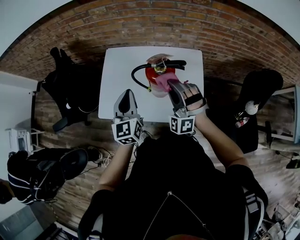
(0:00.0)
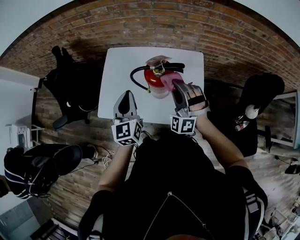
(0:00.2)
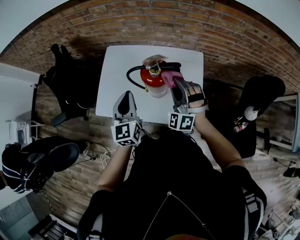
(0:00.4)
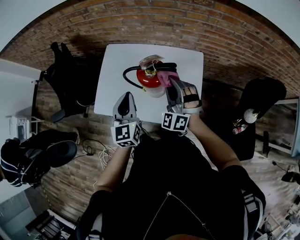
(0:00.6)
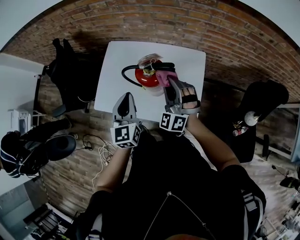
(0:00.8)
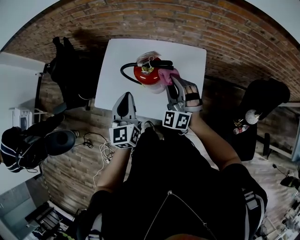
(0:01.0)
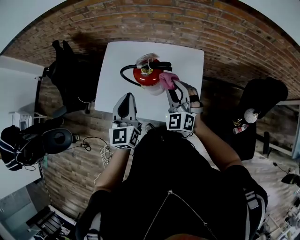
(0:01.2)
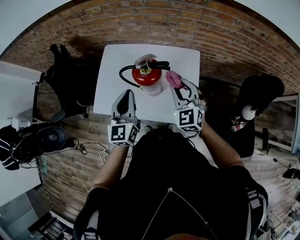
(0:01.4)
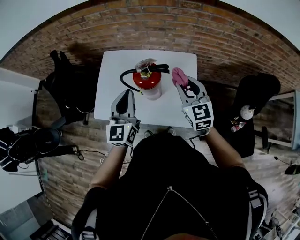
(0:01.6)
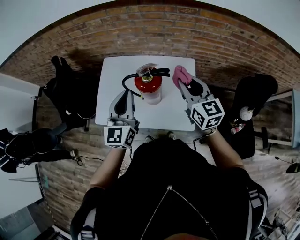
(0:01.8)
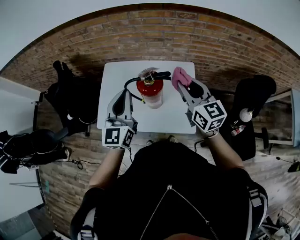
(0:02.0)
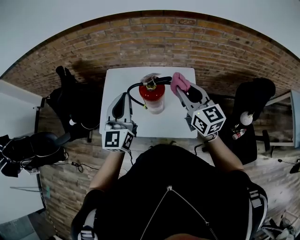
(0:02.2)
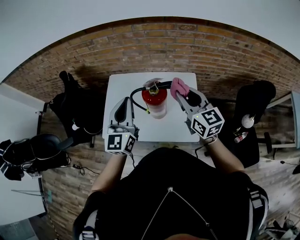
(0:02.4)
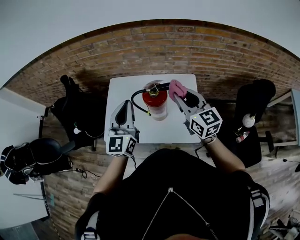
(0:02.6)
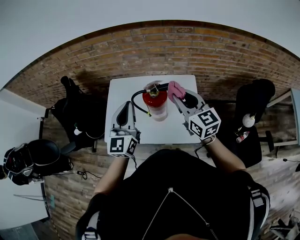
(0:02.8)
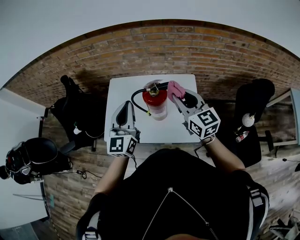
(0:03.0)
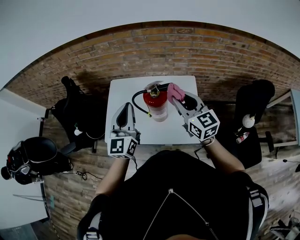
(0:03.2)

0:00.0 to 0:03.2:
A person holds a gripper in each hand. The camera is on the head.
0:00.0 to 0:01.6: The left gripper goes about 10 cm to the right and upward. Meanwhile the right gripper moves to the right, about 10 cm, and rolls clockwise, seen from behind, by some 70 degrees.
0:01.6 to 0:03.2: The left gripper is displaced upward by some 10 cm. Meanwhile the right gripper goes about 10 cm upward and to the left.

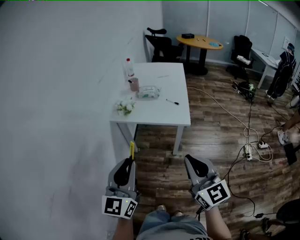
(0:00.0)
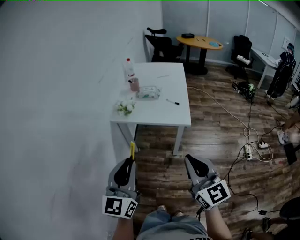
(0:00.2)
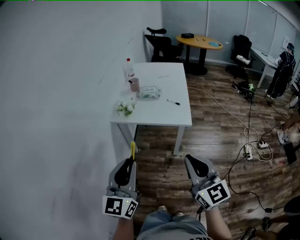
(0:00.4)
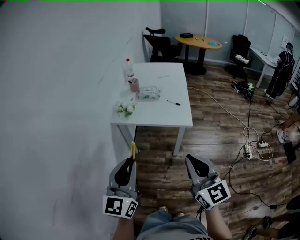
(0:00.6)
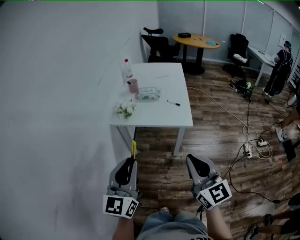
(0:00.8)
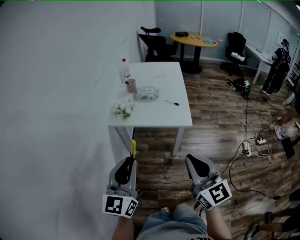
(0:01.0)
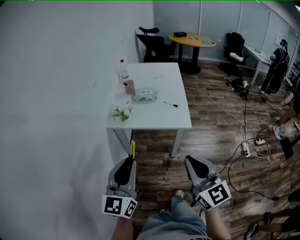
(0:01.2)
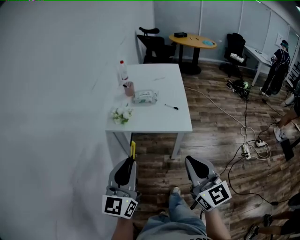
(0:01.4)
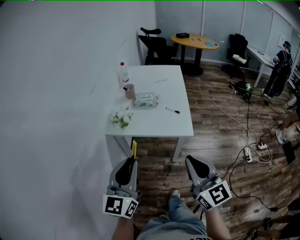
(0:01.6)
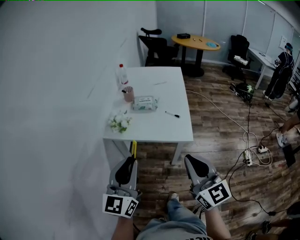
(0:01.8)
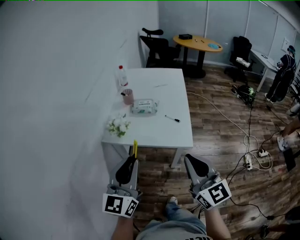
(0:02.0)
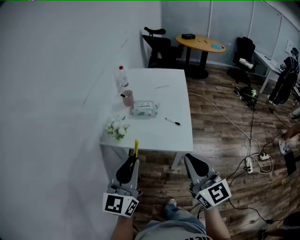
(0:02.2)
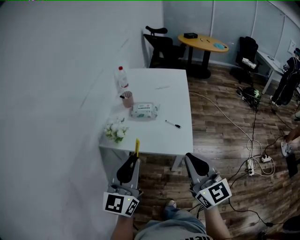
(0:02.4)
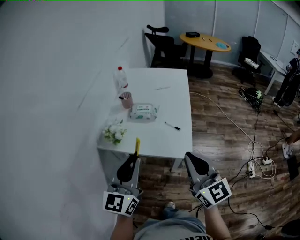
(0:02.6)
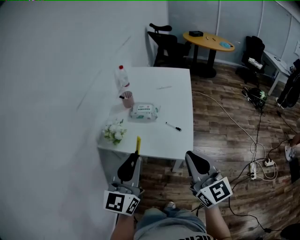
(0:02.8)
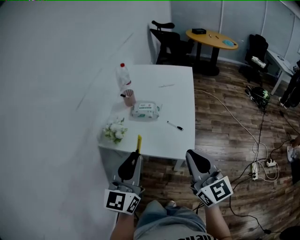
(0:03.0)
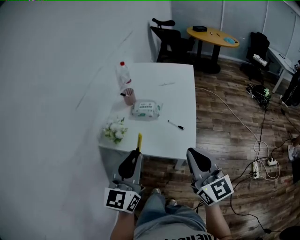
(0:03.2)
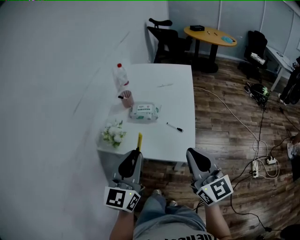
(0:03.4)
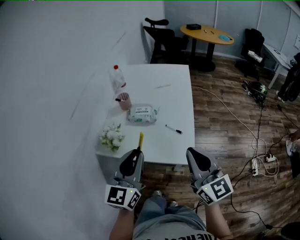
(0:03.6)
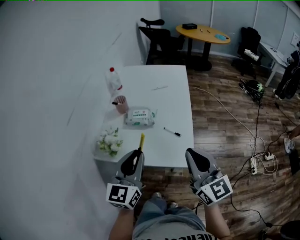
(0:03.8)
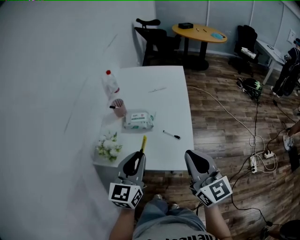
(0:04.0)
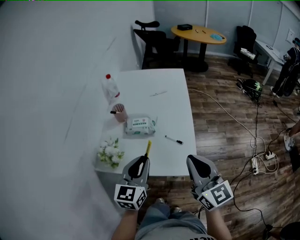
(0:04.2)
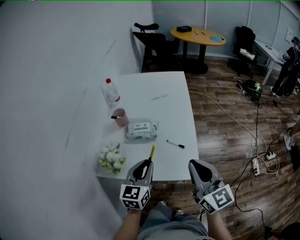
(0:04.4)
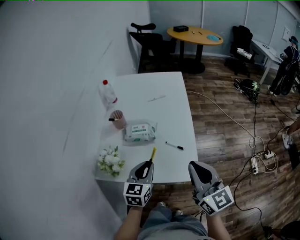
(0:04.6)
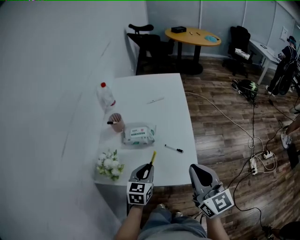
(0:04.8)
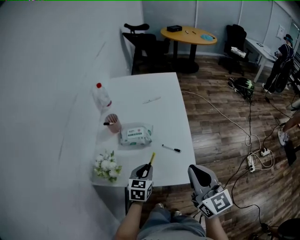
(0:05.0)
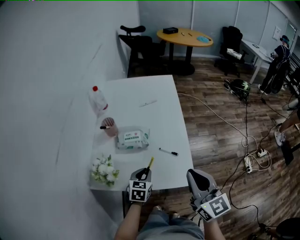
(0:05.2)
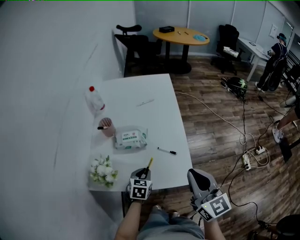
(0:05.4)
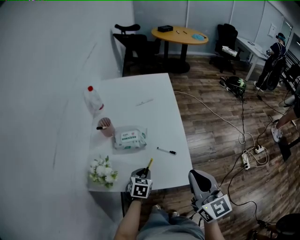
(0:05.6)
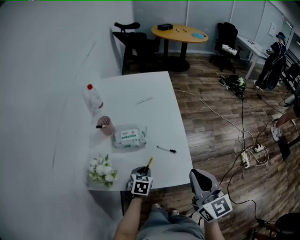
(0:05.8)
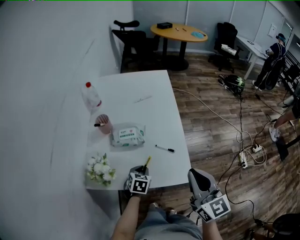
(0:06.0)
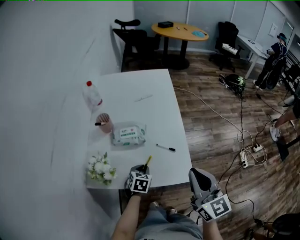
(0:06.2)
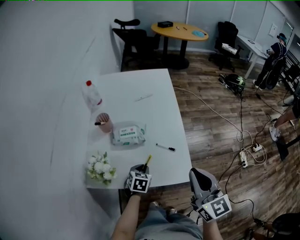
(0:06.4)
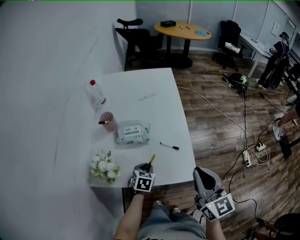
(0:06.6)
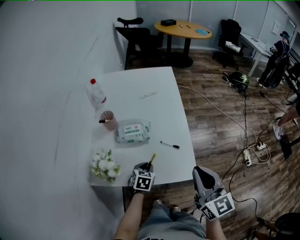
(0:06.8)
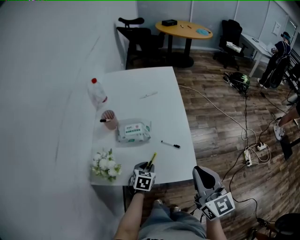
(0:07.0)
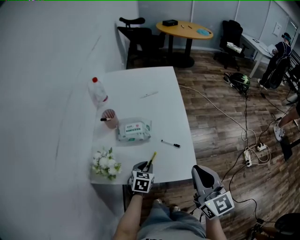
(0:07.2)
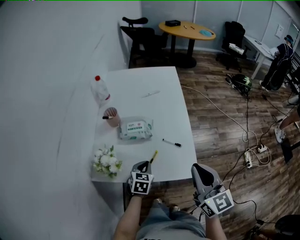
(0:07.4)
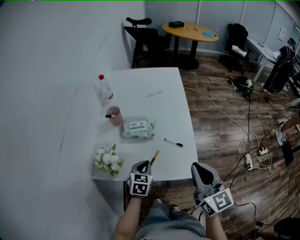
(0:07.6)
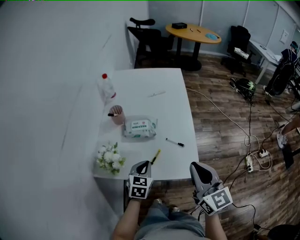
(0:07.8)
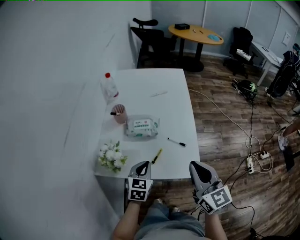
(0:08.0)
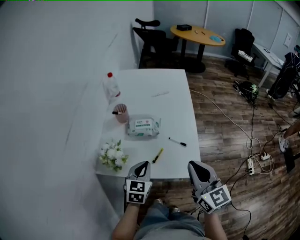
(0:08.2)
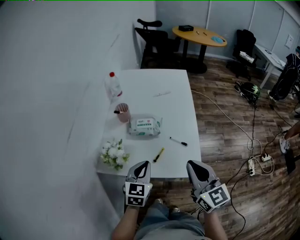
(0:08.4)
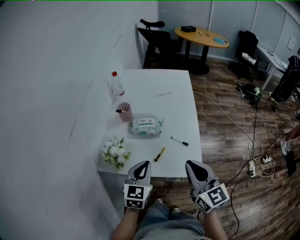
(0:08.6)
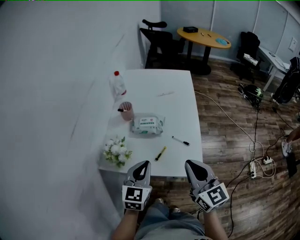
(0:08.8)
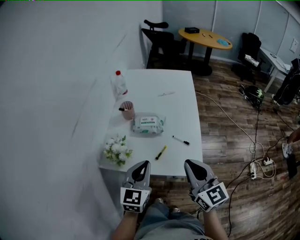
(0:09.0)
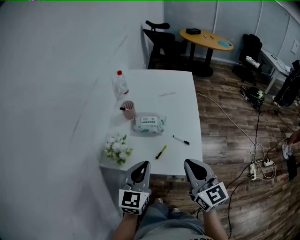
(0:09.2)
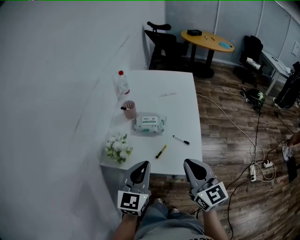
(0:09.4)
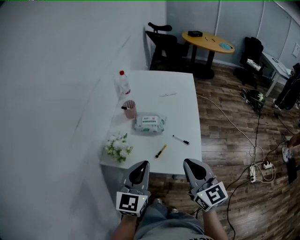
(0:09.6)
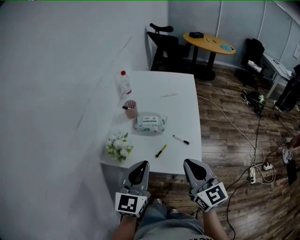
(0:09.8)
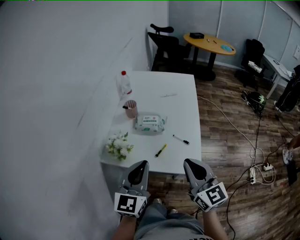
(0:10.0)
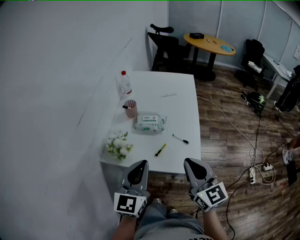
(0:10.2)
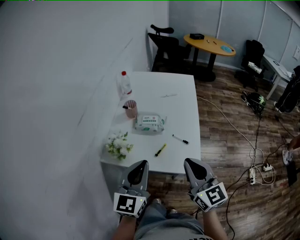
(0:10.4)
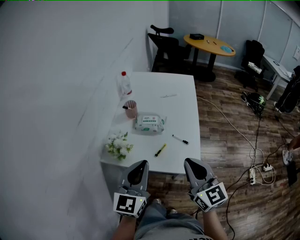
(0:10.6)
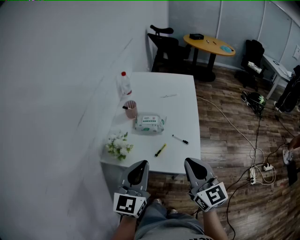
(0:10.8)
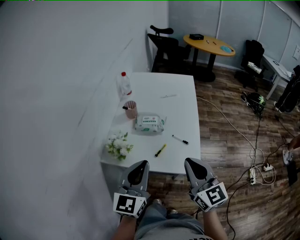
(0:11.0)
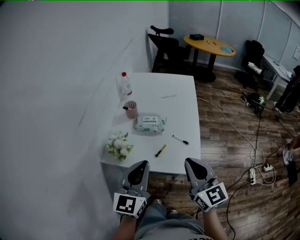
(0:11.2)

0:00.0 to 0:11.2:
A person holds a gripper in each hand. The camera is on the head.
0:00.0 to 0:01.6: The two grippers go some 10 cm forward.
0:01.6 to 0:03.2: The grippers both shift forward and to the right by approximately 20 cm.
0:03.2 to 0:04.8: The right gripper shifts about 10 cm forward; the left gripper travels downward and forward by roughly 25 cm, and tilts its fingers about 30 degrees downward.
0:04.8 to 0:06.4: The left gripper heads downward, covering roughly 10 cm, and changes its angle by roughly 20 degrees.
0:06.4 to 0:08.0: The left gripper moves upward, some 10 cm.
0:08.0 to 0:09.6: The left gripper goes approximately 20 cm upward and backward, and changes its angle by some 30 degrees.
0:09.6 to 0:11.2: The grippers stay close to where they were, moving slightly.

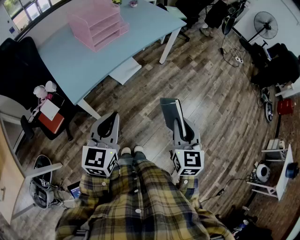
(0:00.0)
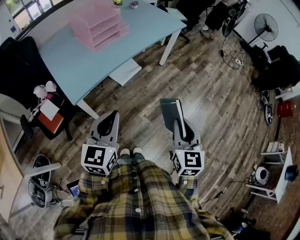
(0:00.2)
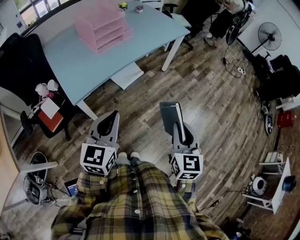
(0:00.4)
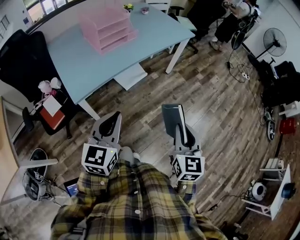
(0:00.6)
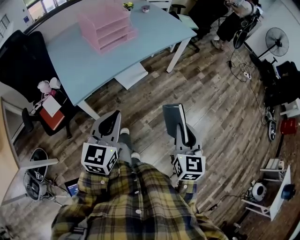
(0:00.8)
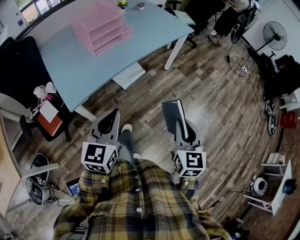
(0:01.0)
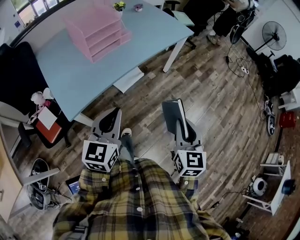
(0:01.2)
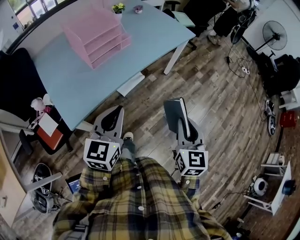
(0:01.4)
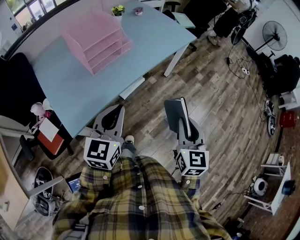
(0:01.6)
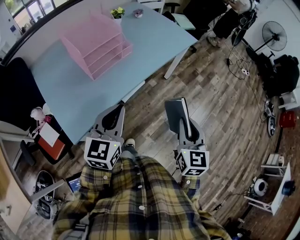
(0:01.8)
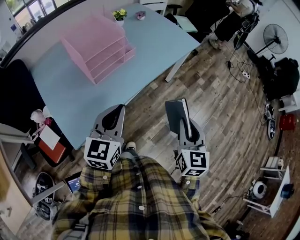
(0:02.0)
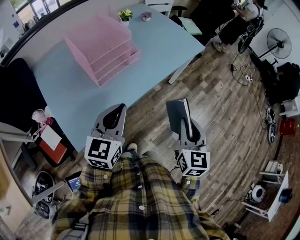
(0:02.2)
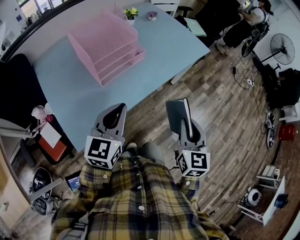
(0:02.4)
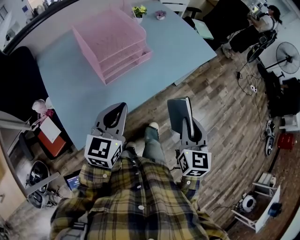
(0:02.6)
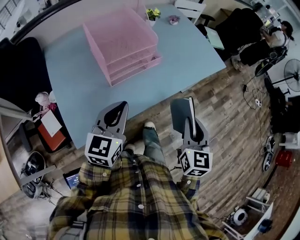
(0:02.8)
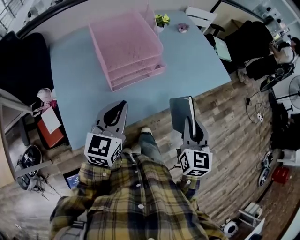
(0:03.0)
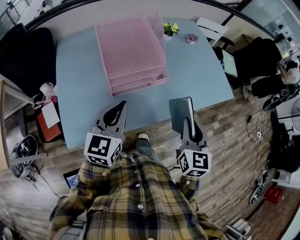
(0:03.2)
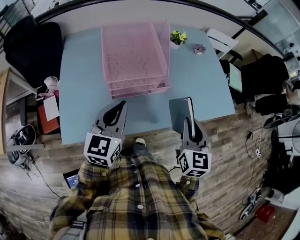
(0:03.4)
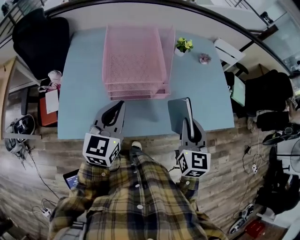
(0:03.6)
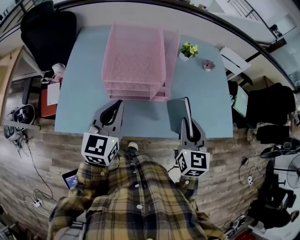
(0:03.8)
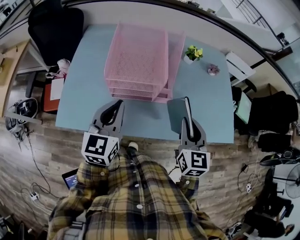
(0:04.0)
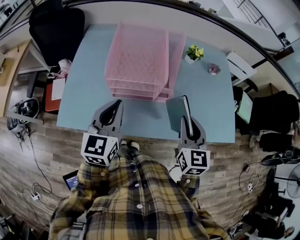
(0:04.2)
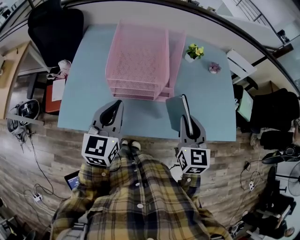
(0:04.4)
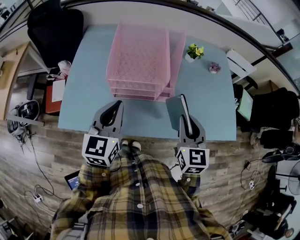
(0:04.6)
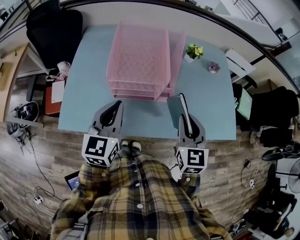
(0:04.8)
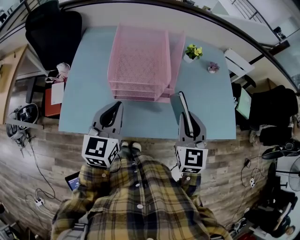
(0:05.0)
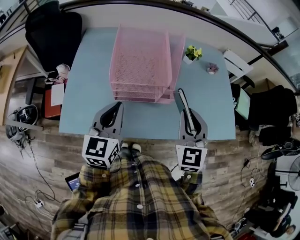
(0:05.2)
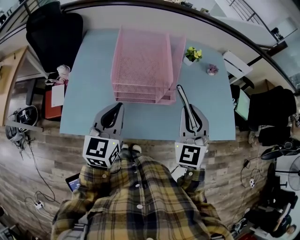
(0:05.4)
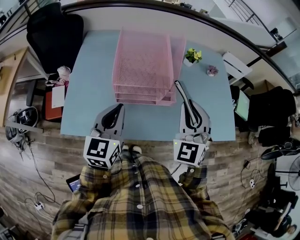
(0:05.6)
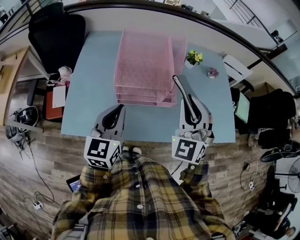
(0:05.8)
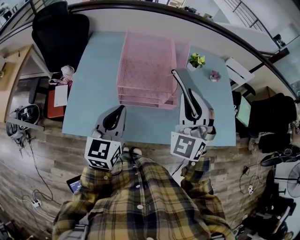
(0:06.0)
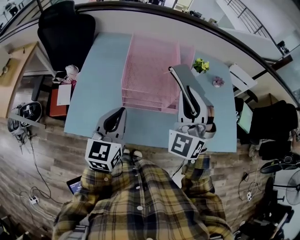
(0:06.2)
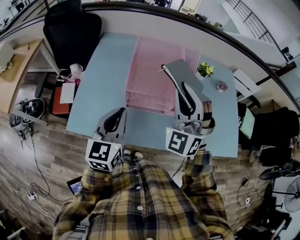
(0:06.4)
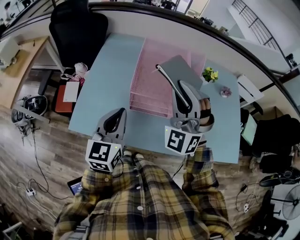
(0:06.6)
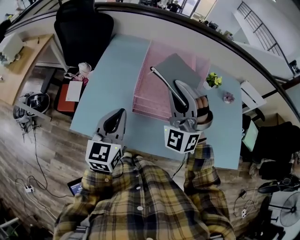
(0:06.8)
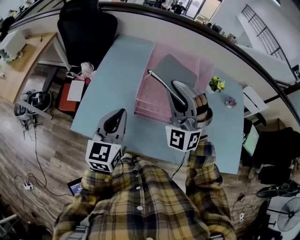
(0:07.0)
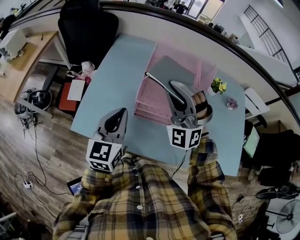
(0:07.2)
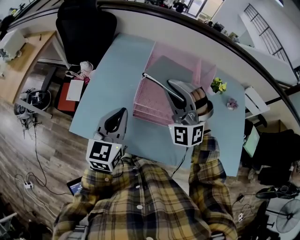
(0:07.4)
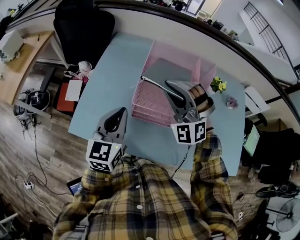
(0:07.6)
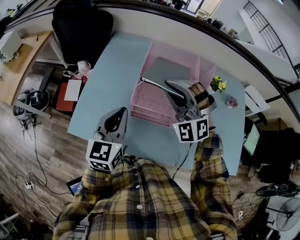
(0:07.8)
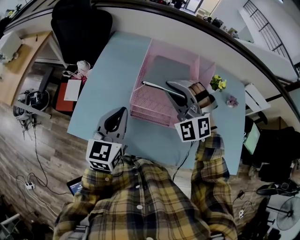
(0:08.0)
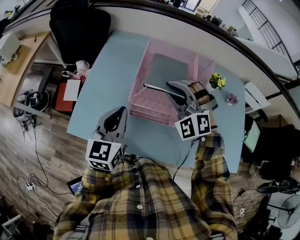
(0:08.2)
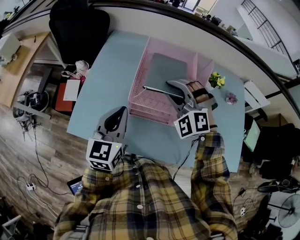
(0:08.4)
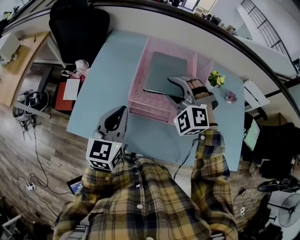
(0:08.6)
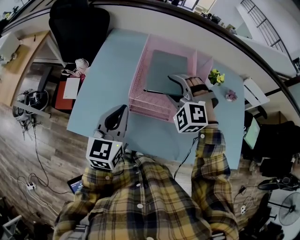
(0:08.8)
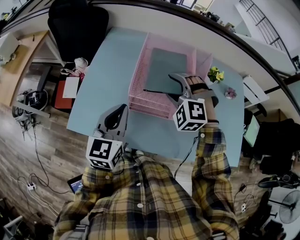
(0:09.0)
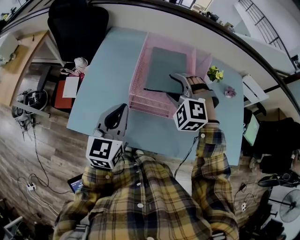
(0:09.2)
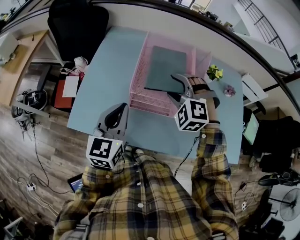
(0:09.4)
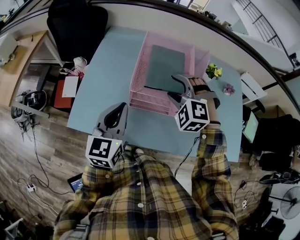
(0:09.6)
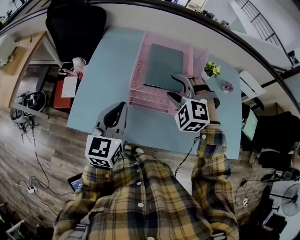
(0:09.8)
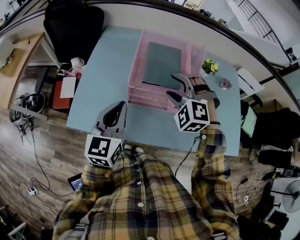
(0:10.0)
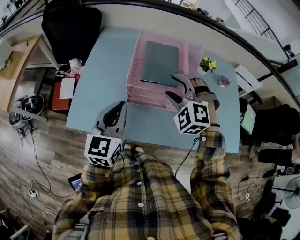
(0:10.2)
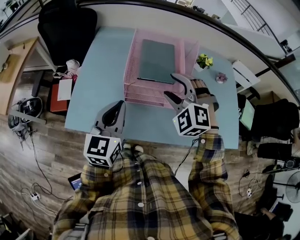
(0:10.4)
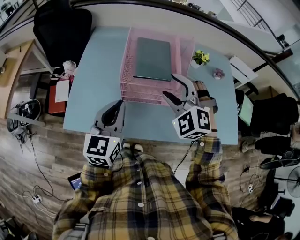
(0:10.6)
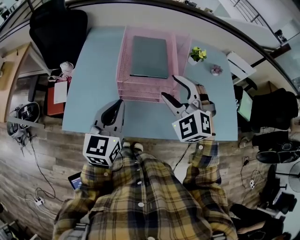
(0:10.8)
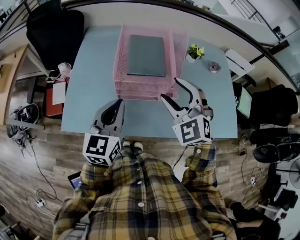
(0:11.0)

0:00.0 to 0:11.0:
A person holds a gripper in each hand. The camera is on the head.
0:00.0 to 0:01.6: The grippers both shift forward by approximately 20 cm.
0:01.6 to 0:03.2: The left gripper moves forward and to the left, roughly 20 cm, and changes its angle by about 20 degrees, while the right gripper heads forward, covering some 30 cm, and changes its angle by about 20 degrees.
0:03.2 to 0:04.8: The right gripper shifts by roughly 10 cm, and swivels roughly 30 degrees. Meanwhile the left gripper rotates roughly 20 degrees.
0:04.8 to 0:06.2: The right gripper travels upward, to the left and forward by roughly 15 cm, and twists some 50 degrees counterclockwise, seen from behind.
0:06.2 to 0:07.8: The left gripper is displaced forward by roughly 5 cm. The right gripper moves forward, to the left and downward, about 15 cm, and swivels roughly 40 degrees.
0:07.8 to 0:09.4: The right gripper is displaced downward by roughly 10 cm, swivels about 30 degrees, and opens its fingers.
0:09.4 to 0:11.0: The right gripper heads backward and upward, covering some 10 cm, and swivels approximately 30 degrees.
